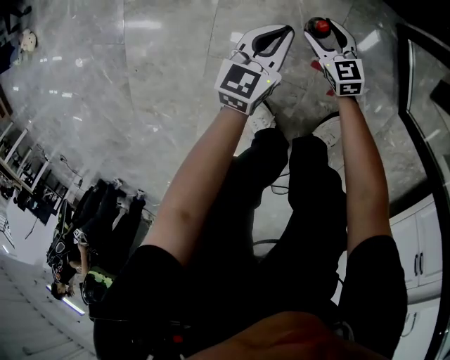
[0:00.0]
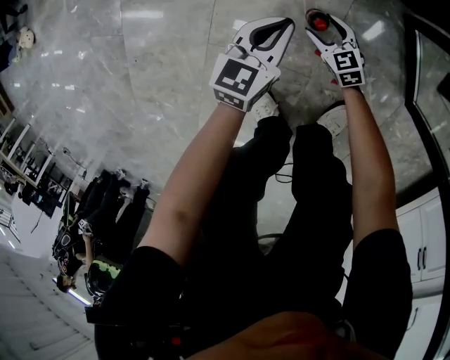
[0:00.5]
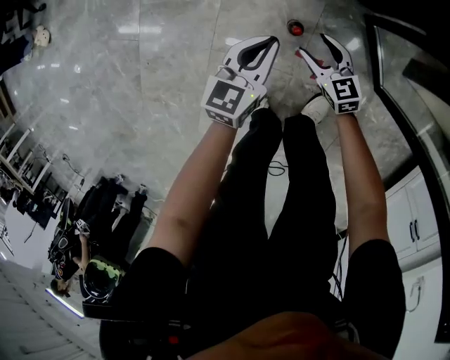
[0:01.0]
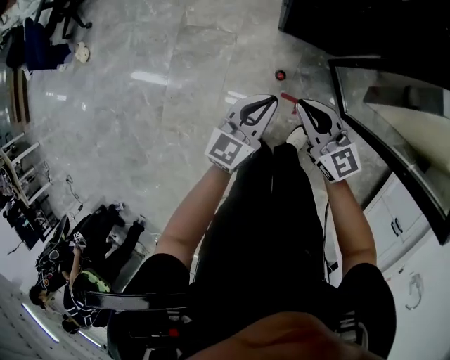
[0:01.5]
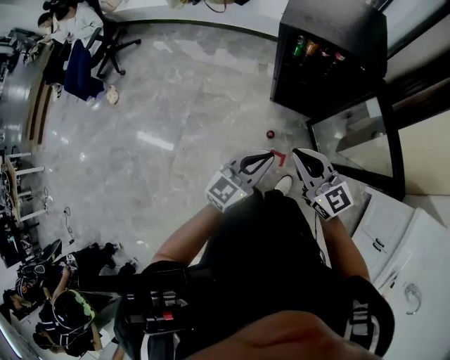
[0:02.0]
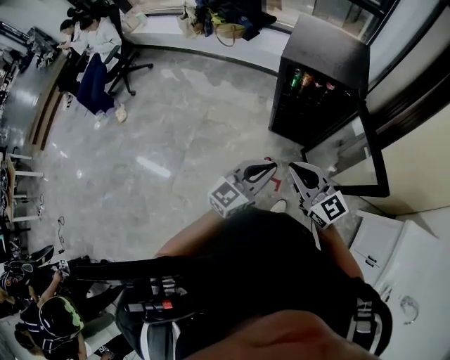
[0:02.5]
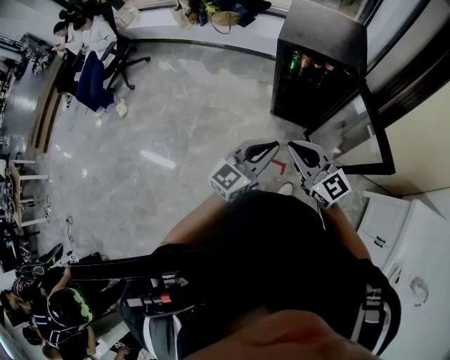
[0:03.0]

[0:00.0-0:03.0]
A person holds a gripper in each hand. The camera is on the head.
0:00.0 to 0:01.5: The grippers both shift upward by some 60 cm. The right gripper changes its angle by roughly 20 degrees, and closes its fingers.
0:01.5 to 0:03.0: The grippers both shift upward by about 35 cm.

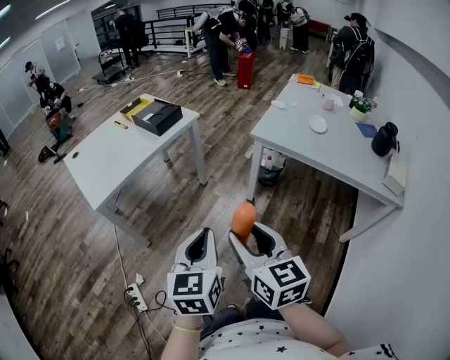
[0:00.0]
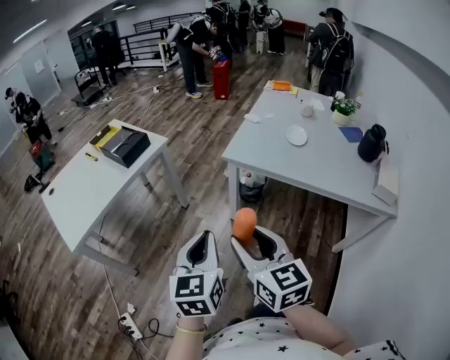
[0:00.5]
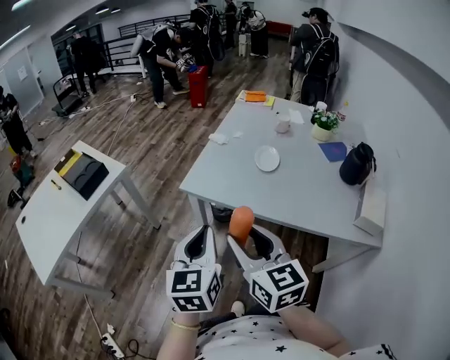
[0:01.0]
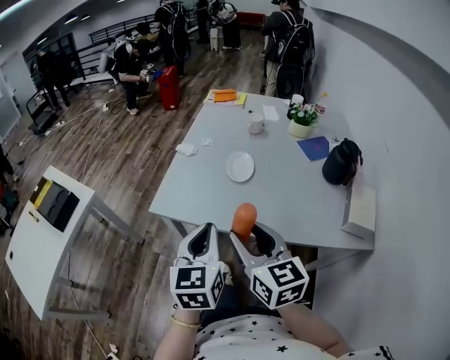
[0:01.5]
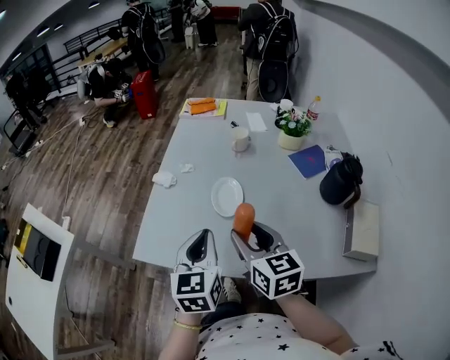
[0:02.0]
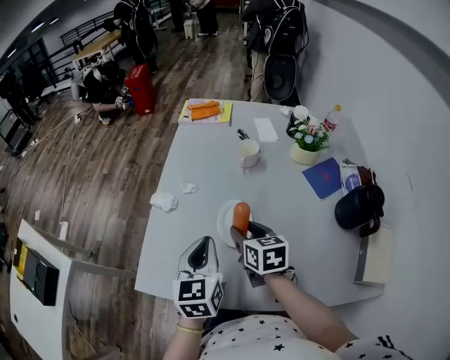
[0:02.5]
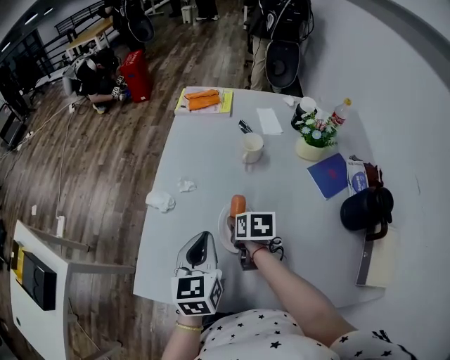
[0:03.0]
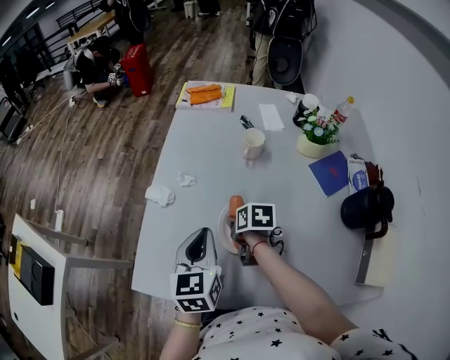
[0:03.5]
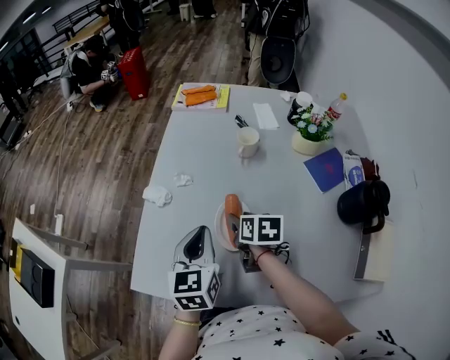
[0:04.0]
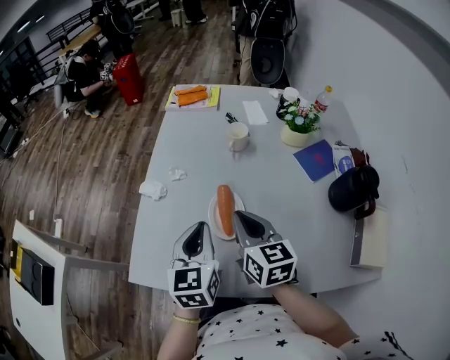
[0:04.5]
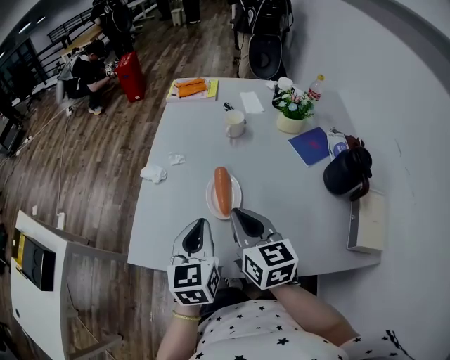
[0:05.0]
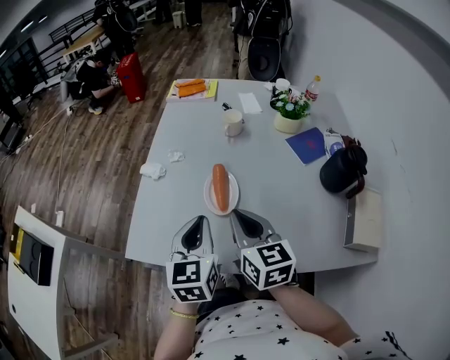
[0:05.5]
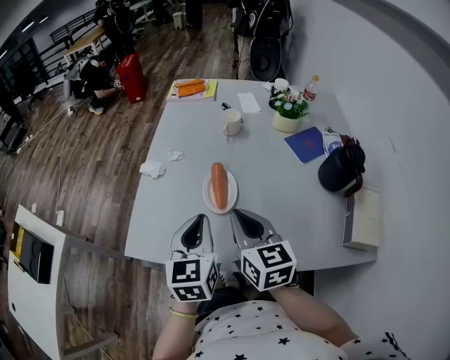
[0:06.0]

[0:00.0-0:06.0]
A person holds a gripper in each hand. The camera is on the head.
0:00.0 to 0:02.0: The two grippers travel together, forward and to the right, some 70 cm. The left gripper rotates roughly 20 degrees. Meanwhile the right gripper rotates roughly 20 degrees.
0:02.0 to 0:04.0: The right gripper heads forward and downward, covering approximately 25 cm, and rotates some 40 degrees. Meanwhile the left gripper shifts some 15 cm forward.
0:04.0 to 0:06.0: The left gripper travels backward by about 10 cm; the right gripper moves backward and upward, approximately 25 cm, angles its fingers upward, by about 30 degrees, and closes.

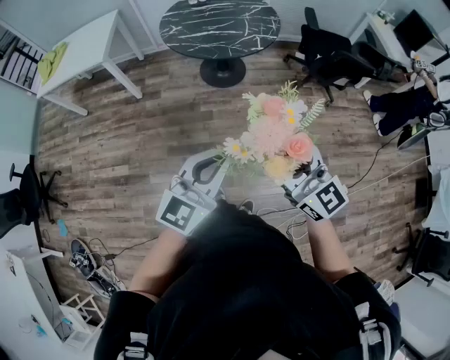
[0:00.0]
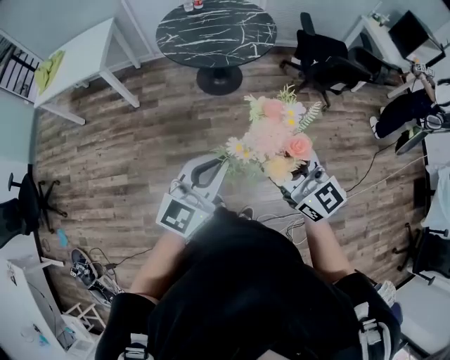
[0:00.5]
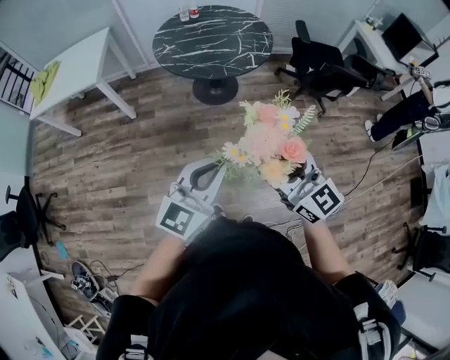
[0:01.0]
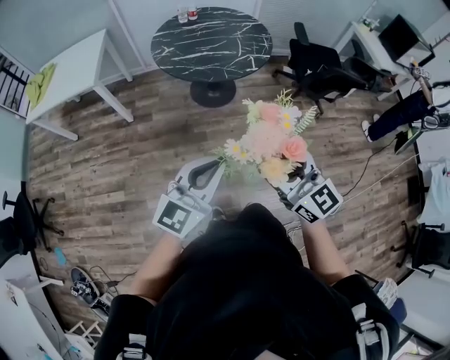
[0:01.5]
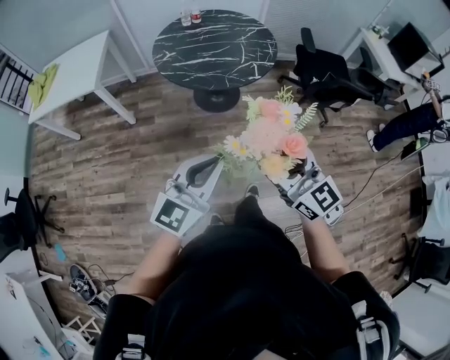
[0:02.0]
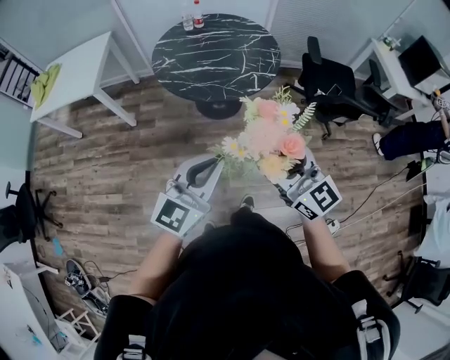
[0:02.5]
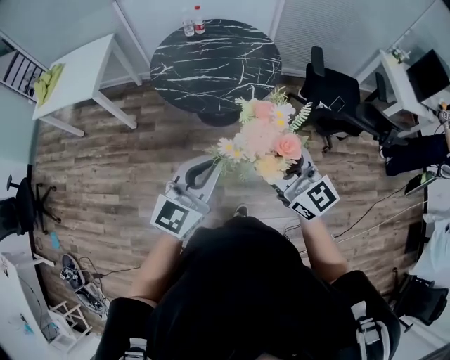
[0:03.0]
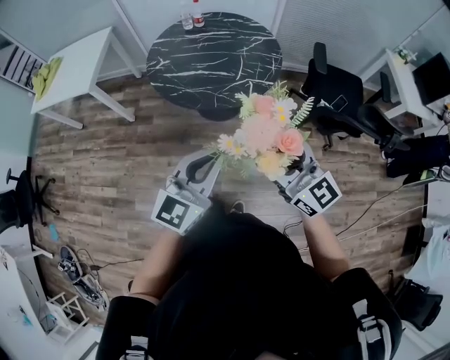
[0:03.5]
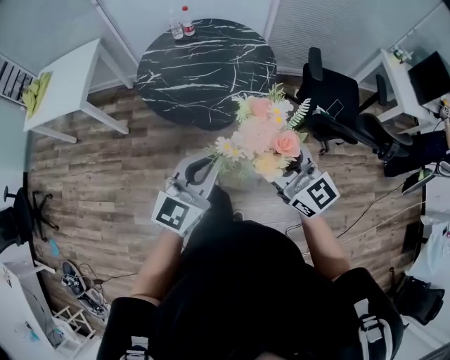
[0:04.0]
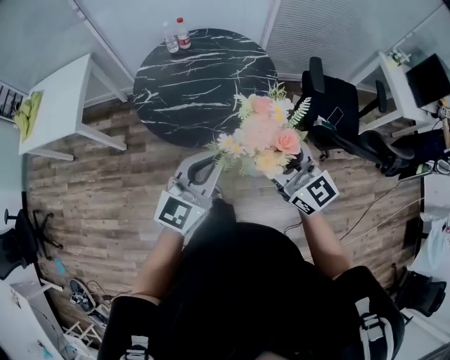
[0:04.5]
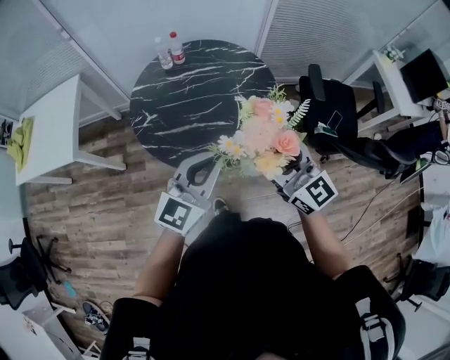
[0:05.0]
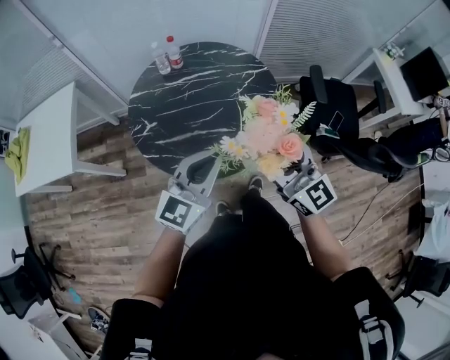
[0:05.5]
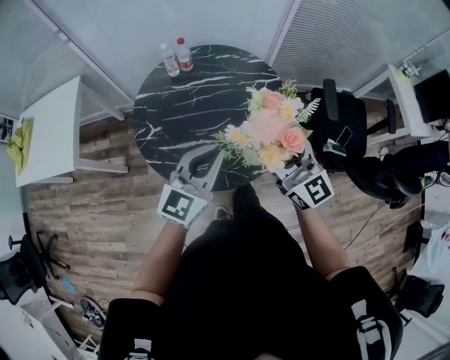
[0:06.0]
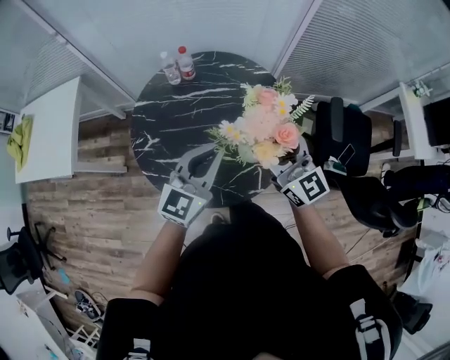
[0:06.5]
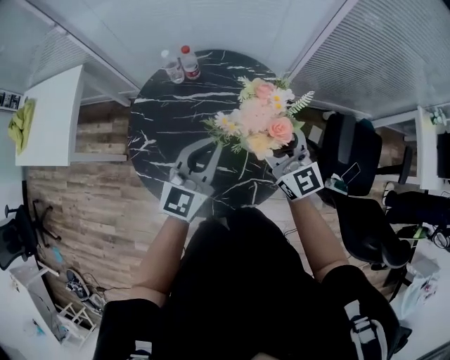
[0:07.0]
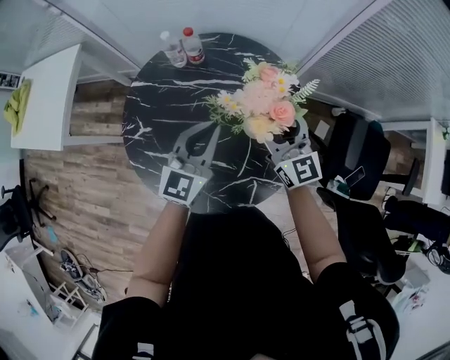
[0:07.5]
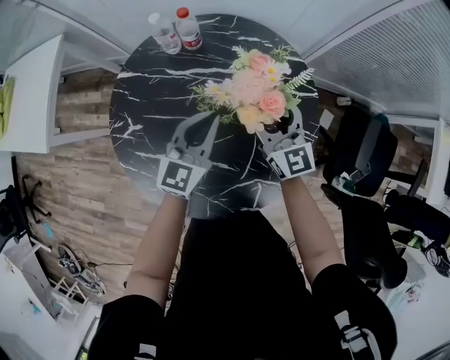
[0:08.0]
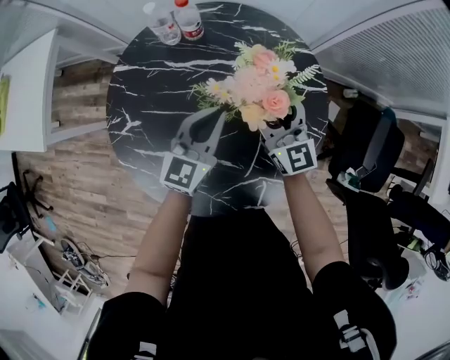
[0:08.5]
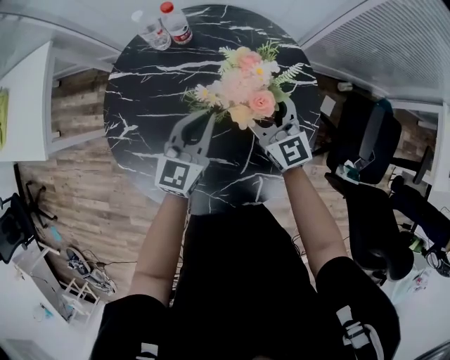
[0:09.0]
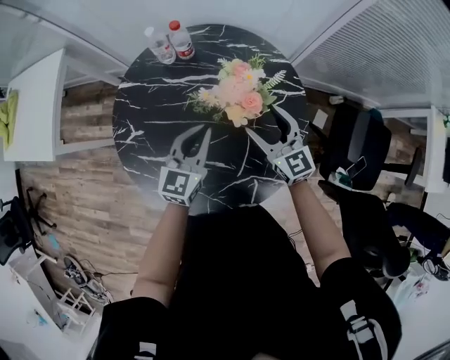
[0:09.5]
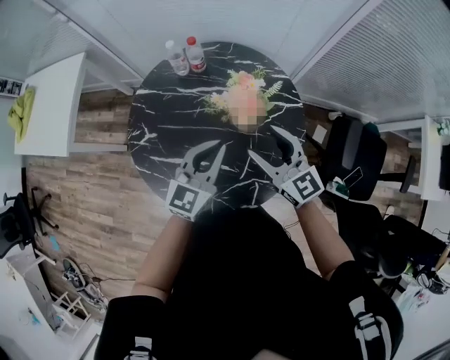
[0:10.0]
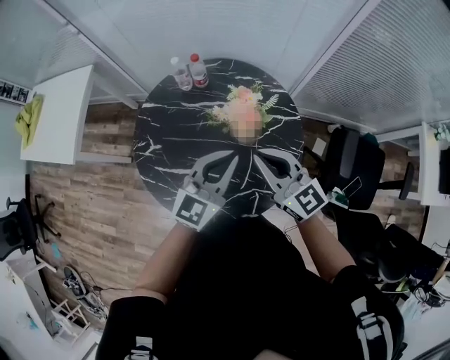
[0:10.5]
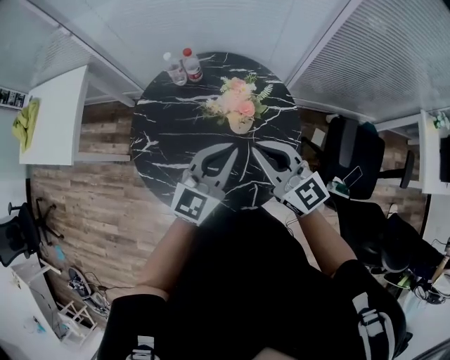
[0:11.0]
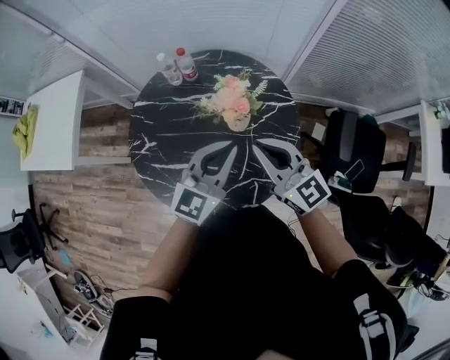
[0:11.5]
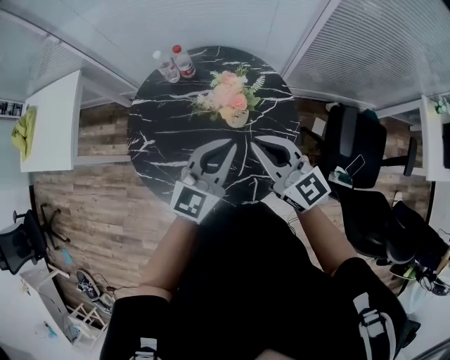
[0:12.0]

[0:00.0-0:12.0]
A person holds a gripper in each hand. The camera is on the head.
0:00.0 to 0:02.0: The grippers both shift forward by about 15 cm.
0:02.0 to 0:04.0: The two grippers go some 30 cm forward and to the right.
0:04.0 to 0:06.0: Both grippers travel together forward, some 35 cm.
0:06.0 to 0:08.0: The two grippers go about 35 cm forward and downward. The left gripper swivels some 20 degrees.
0:08.0 to 0:10.0: The right gripper goes approximately 15 cm backward and upward, while the left gripper travels upward and backward by some 15 cm.
0:10.0 to 0:12.0: The left gripper goes about 10 cm upward and to the right. Meanwhile the right gripper heads upward, covering approximately 5 cm, and closes its fingers.

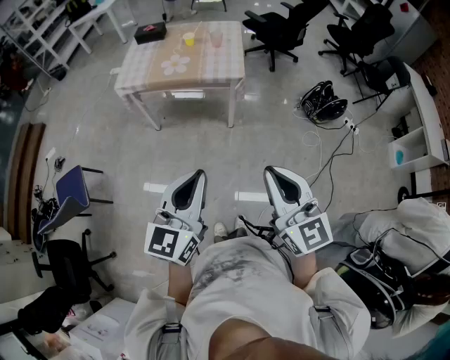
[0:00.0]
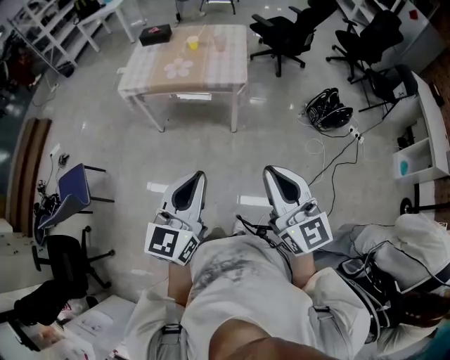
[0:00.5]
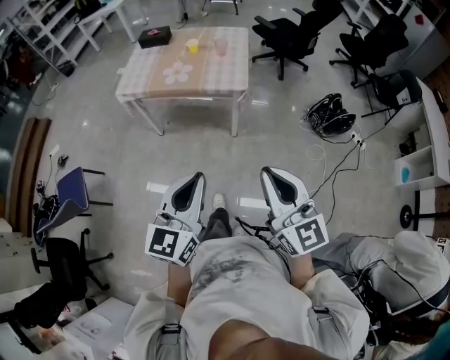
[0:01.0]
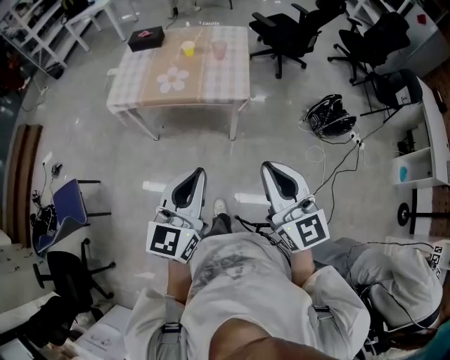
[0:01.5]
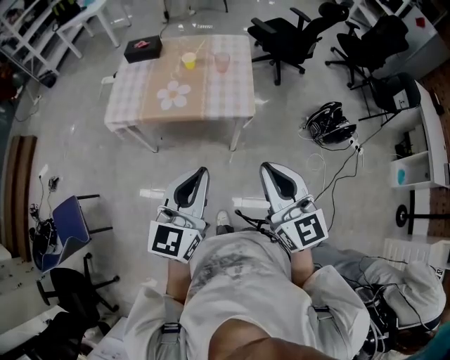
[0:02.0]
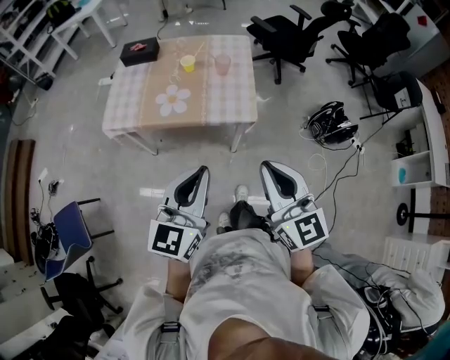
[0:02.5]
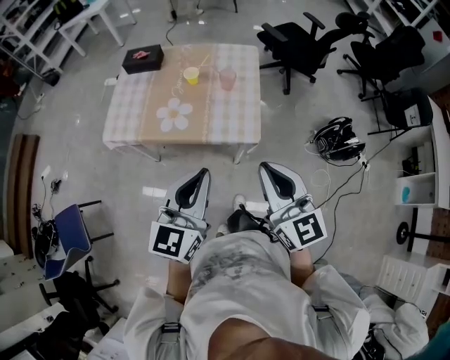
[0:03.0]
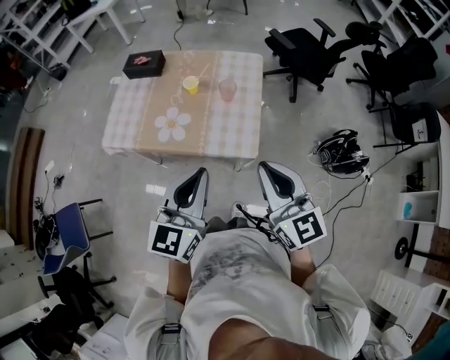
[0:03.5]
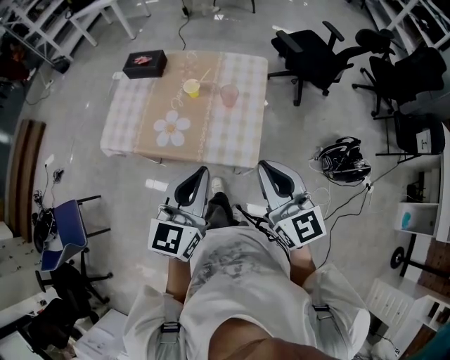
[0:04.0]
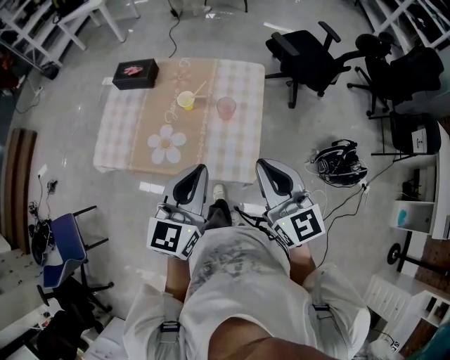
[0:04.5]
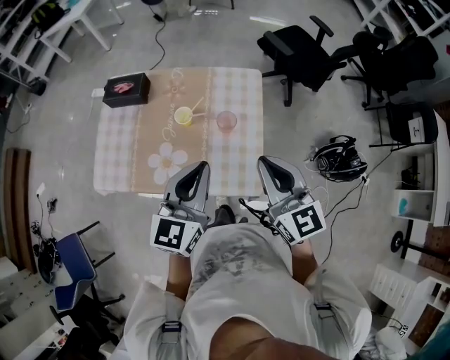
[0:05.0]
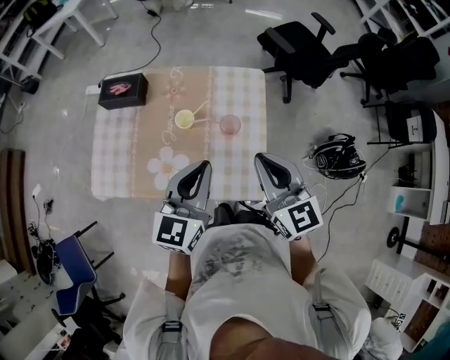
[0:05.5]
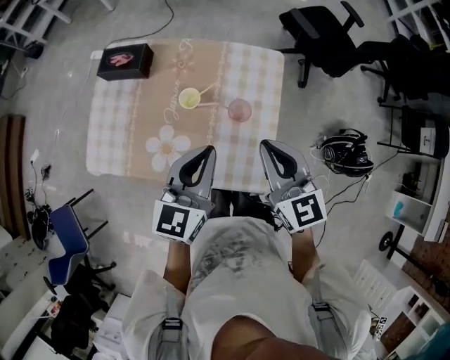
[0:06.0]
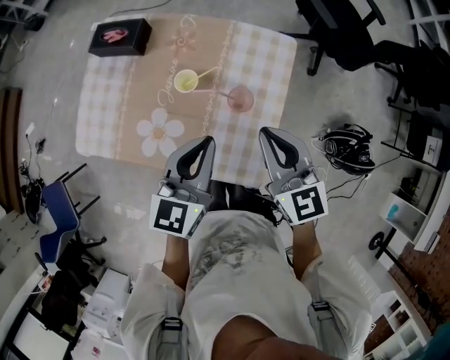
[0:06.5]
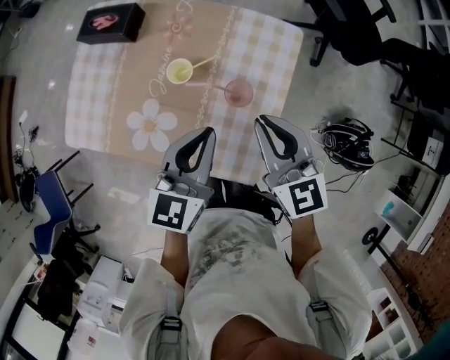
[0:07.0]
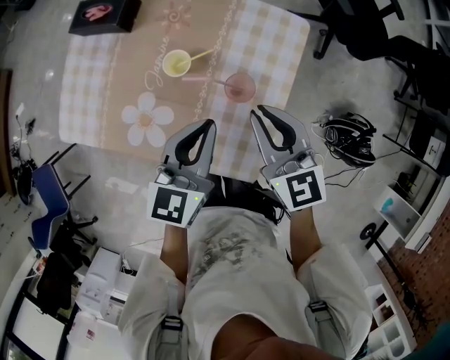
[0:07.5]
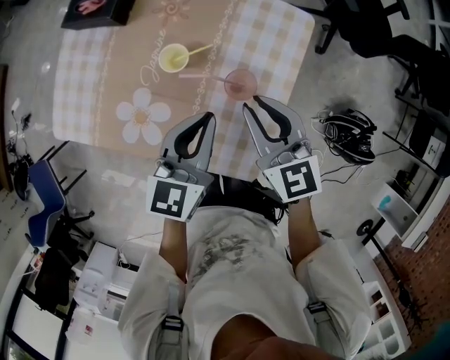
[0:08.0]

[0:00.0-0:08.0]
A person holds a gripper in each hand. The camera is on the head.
0:00.0 to 0:02.0: The grippers both shift forward by some 30 cm.
0:02.0 to 0:04.0: The two grippers go about 30 cm forward.
0:04.0 to 0:06.0: The two grippers go about 25 cm forward.
0:06.0 to 0:08.0: The two grippers go some 15 cm downward and forward.
